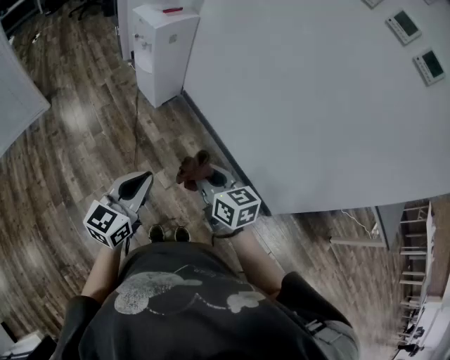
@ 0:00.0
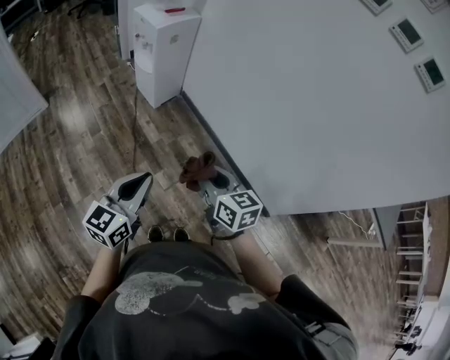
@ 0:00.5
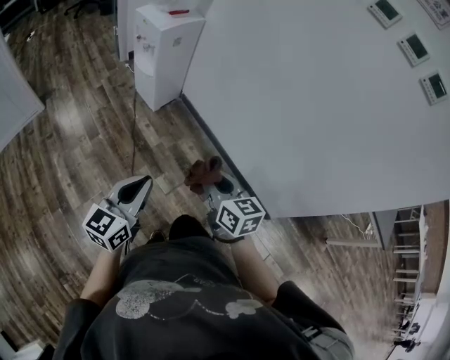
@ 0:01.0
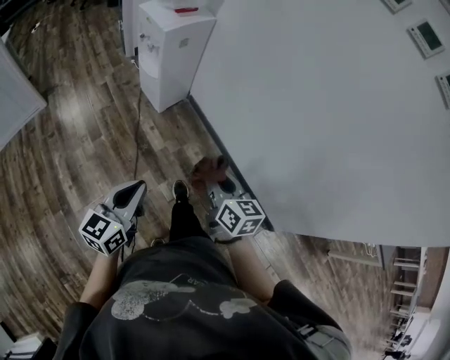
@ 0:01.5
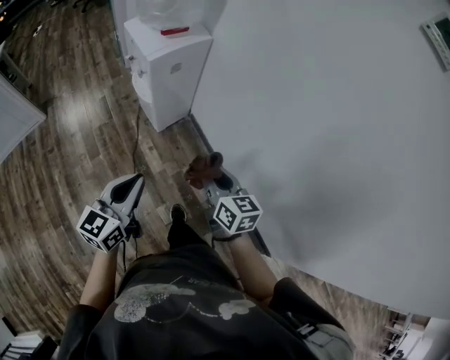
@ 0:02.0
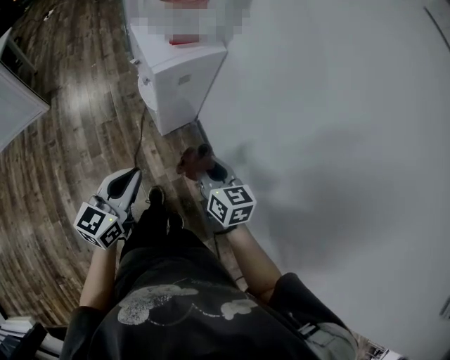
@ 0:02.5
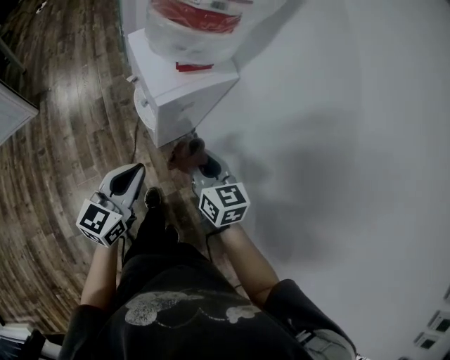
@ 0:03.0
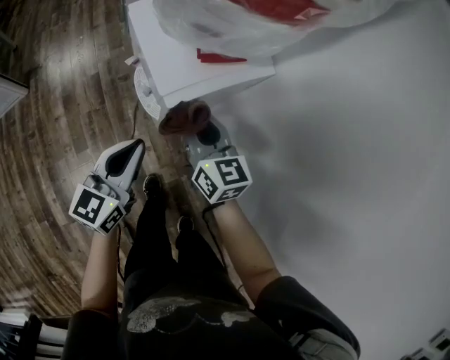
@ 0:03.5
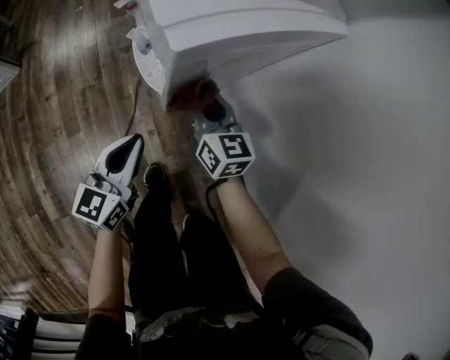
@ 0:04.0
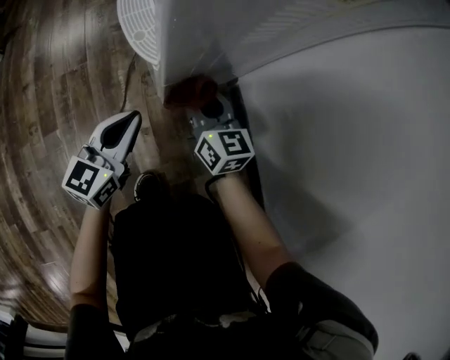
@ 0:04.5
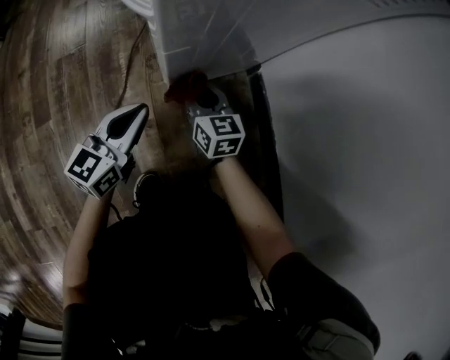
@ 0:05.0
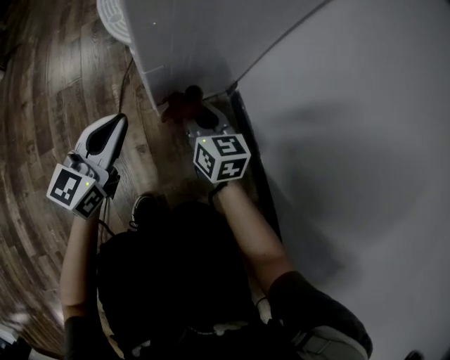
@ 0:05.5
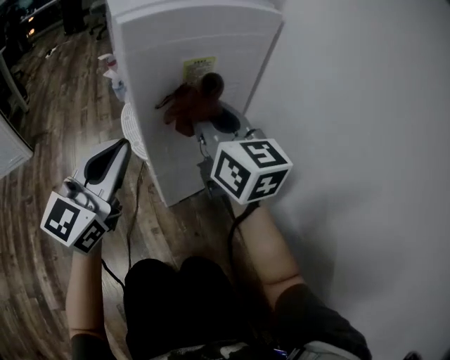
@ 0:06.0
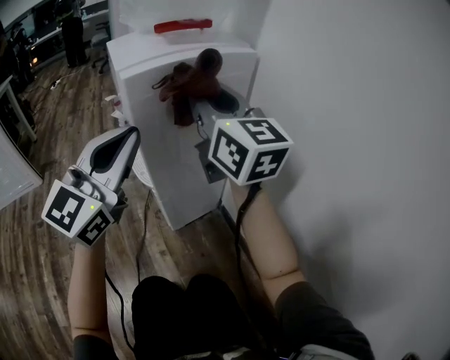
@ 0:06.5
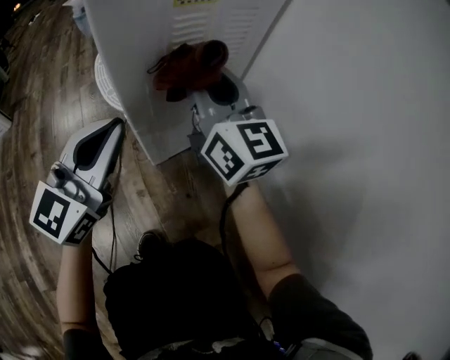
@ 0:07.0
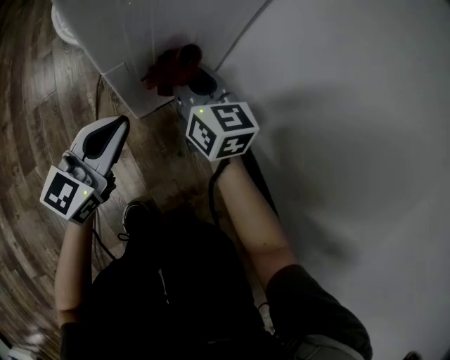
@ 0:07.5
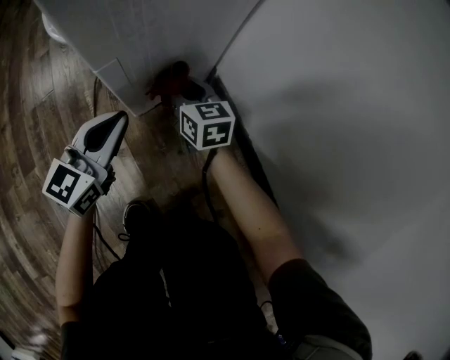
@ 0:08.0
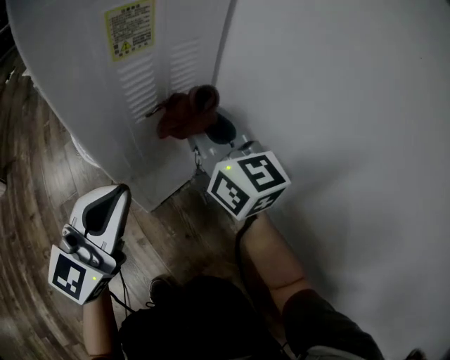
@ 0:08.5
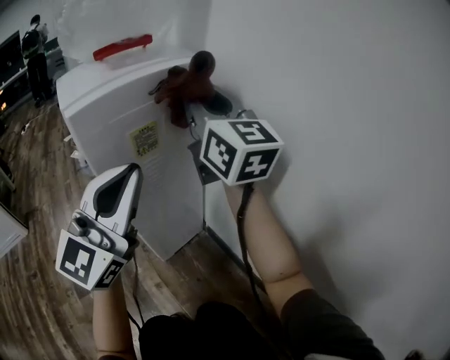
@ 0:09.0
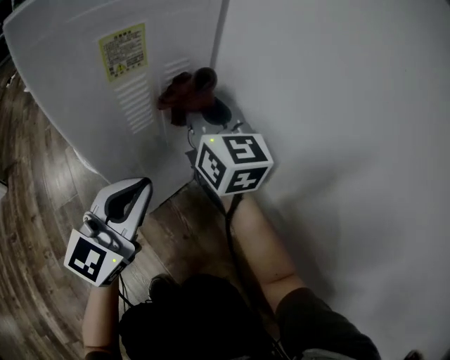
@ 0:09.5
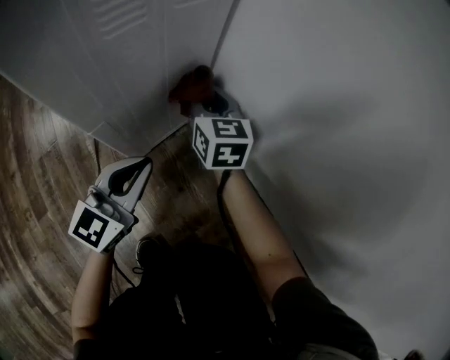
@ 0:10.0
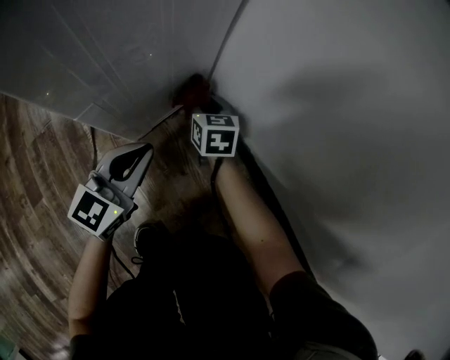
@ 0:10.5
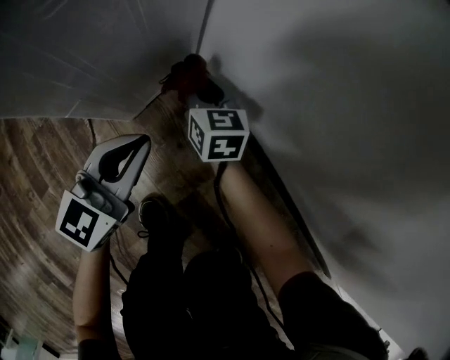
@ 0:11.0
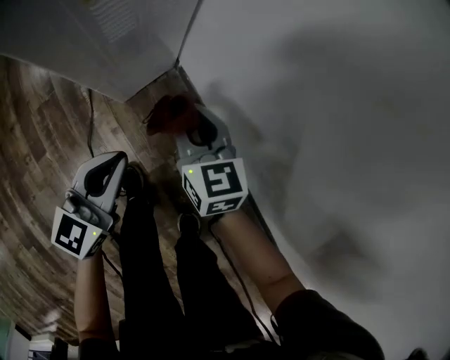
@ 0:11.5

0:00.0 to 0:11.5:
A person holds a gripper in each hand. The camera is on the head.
0:00.0 to 0:02.0: The grippers both shift forward by roughly 35 cm.
0:02.0 to 0:04.0: The two grippers go approximately 40 cm forward and downward.
0:04.0 to 0:06.0: The left gripper goes downward and returns, about 35 cm each way, and turns by roughly 30 degrees. Meanwhile the right gripper moves about 40 cm downward and comes back, and turns by roughly 20 degrees.
0:06.0 to 0:07.5: Both grippers move downward, approximately 30 cm. The left gripper changes its angle by roughly 20 degrees.
0:07.5 to 0:09.5: The right gripper swings up and down, some 60 cm each way, with 2 reversals, and rotates approximately 20 degrees. Meanwhile the left gripper travels upward by approximately 20 cm.
0:09.5 to 0:11.5: The left gripper heads backward, covering approximately 10 cm, travels downward and back again, about 25 cm each way, and swivels approximately 30 degrees, while the right gripper is displaced backward by approximately 20 cm, moves some 40 cm downward and comes back, and angles its fingers downward, by some 30 degrees.

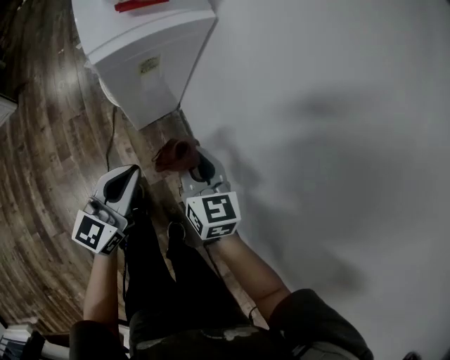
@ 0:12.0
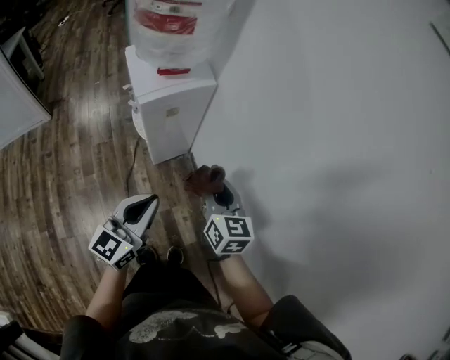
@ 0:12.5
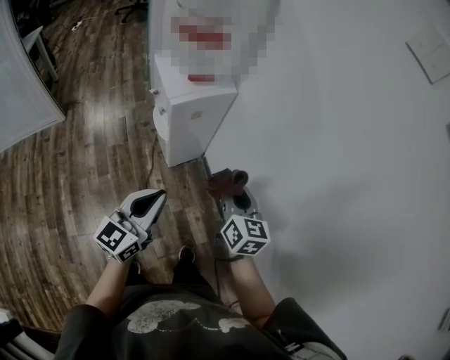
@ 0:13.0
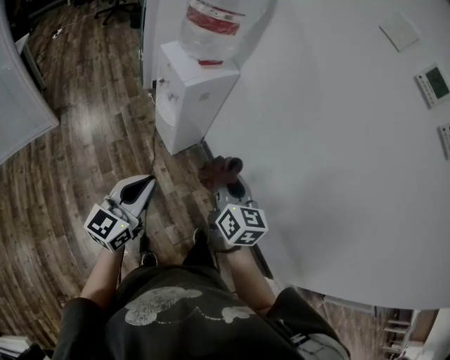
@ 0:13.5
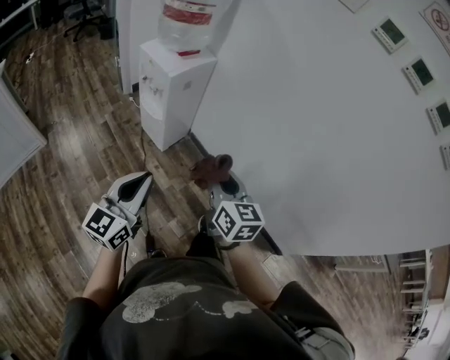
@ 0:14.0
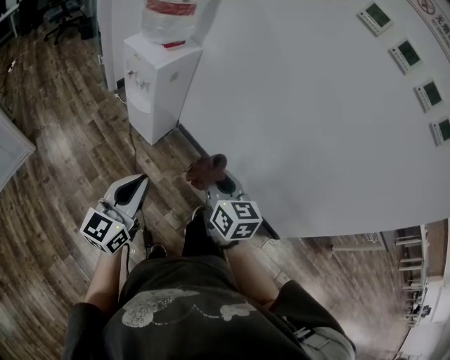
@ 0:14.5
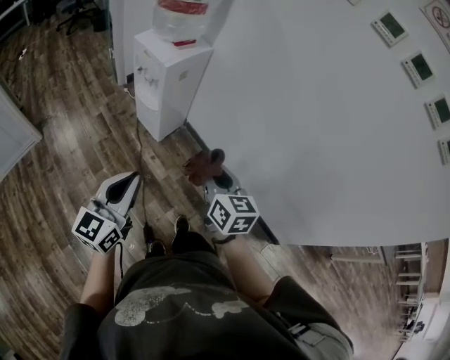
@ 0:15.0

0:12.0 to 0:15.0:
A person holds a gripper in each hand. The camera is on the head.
0:12.0 to 0:13.5: The left gripper shifts roughly 35 cm backward, upward and to the left. The right gripper heads upward and backward, covering about 30 cm.
0:13.5 to 0:15.0: The grippers both shift backward by some 10 cm.

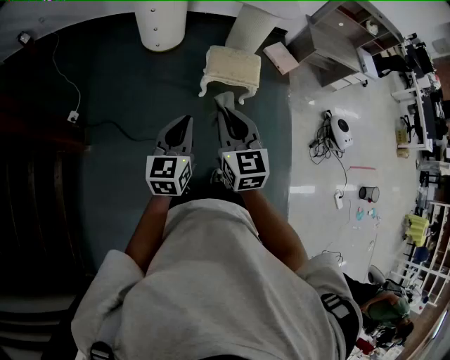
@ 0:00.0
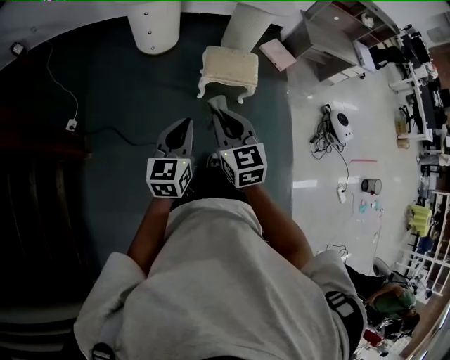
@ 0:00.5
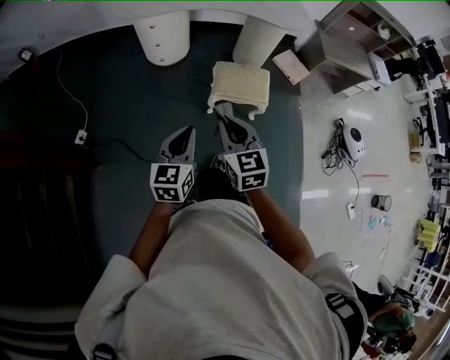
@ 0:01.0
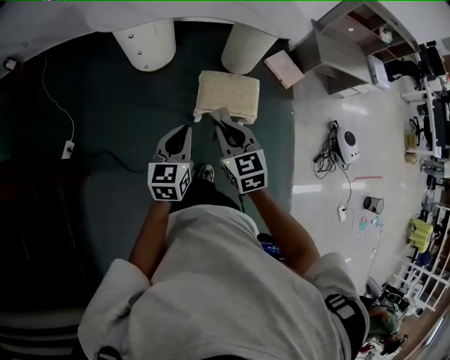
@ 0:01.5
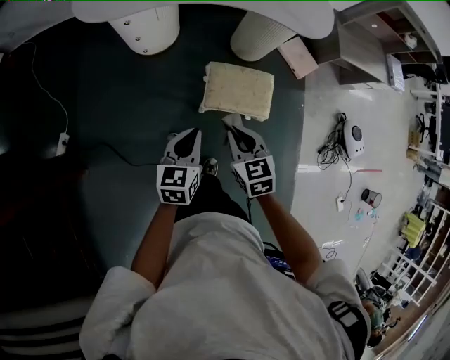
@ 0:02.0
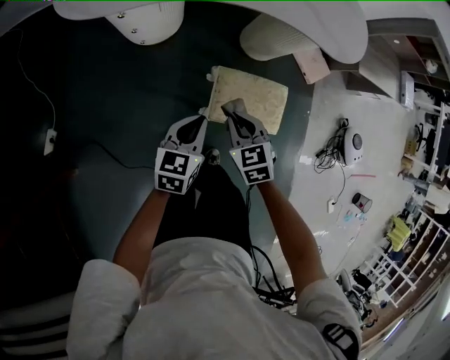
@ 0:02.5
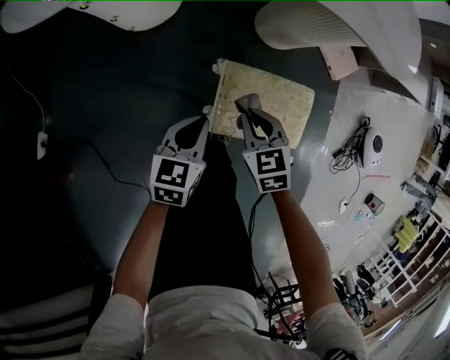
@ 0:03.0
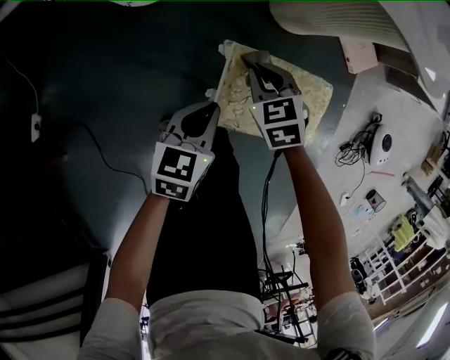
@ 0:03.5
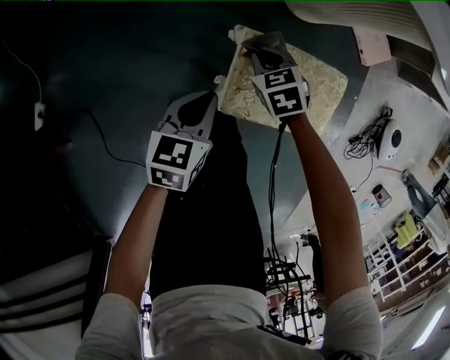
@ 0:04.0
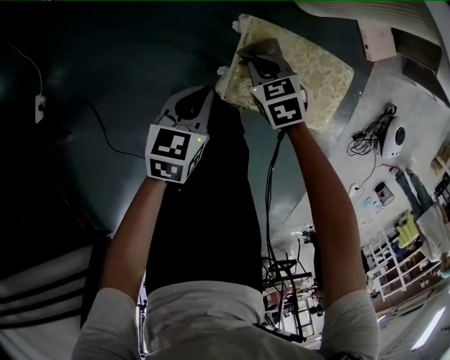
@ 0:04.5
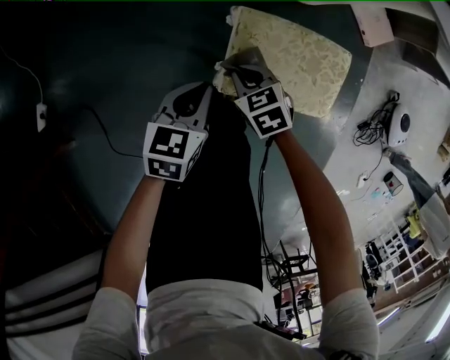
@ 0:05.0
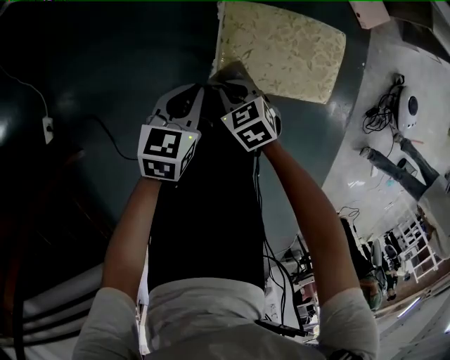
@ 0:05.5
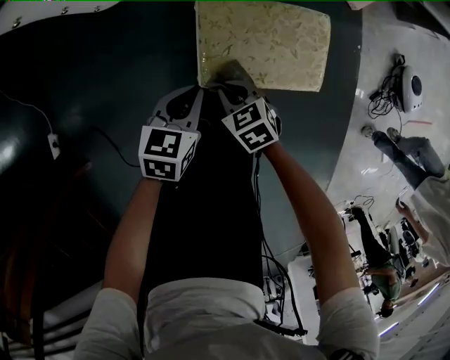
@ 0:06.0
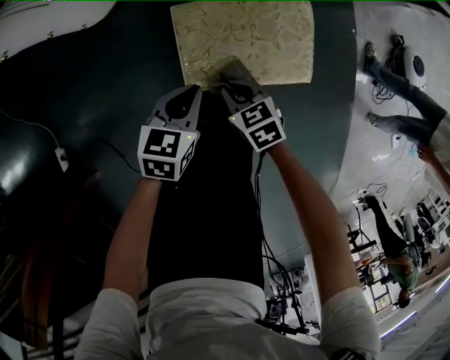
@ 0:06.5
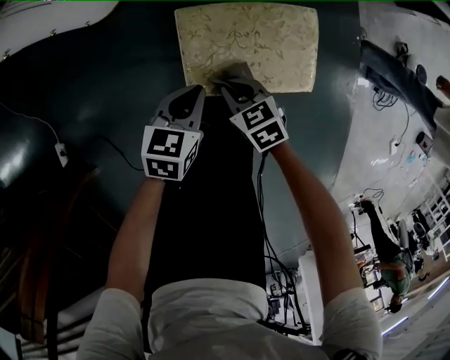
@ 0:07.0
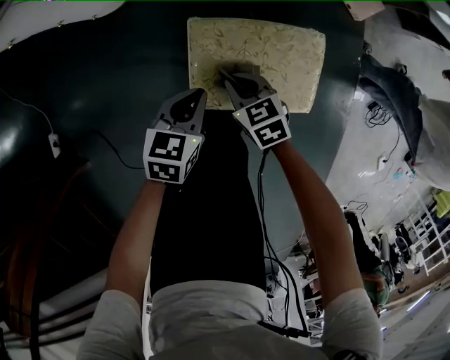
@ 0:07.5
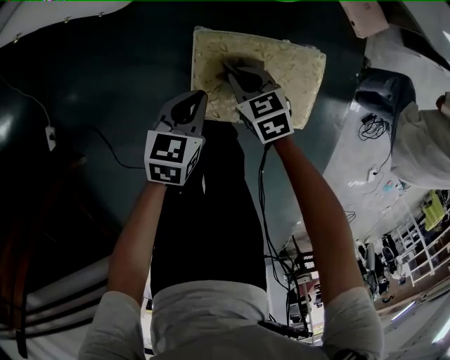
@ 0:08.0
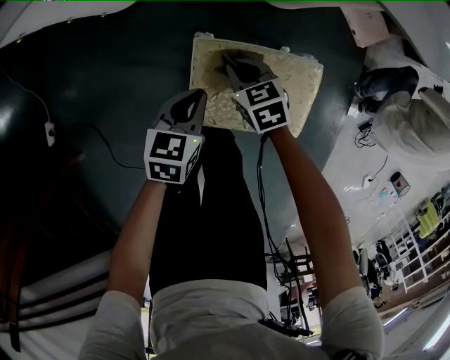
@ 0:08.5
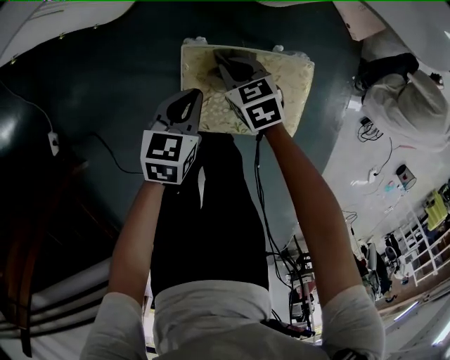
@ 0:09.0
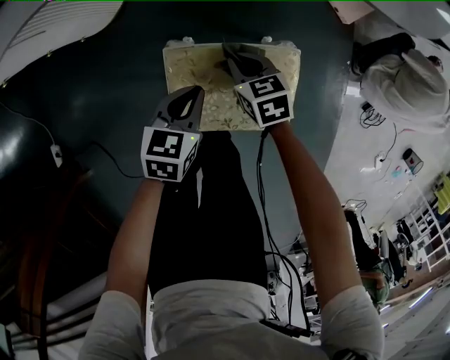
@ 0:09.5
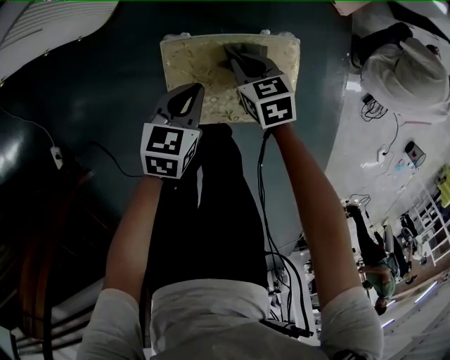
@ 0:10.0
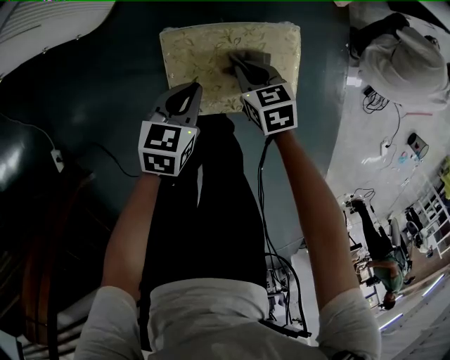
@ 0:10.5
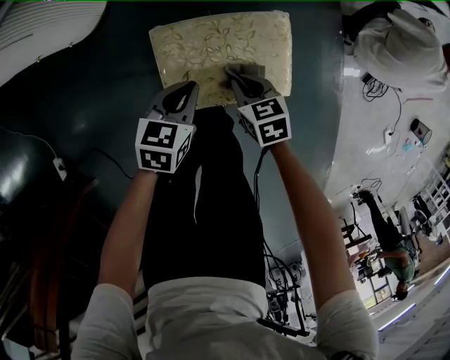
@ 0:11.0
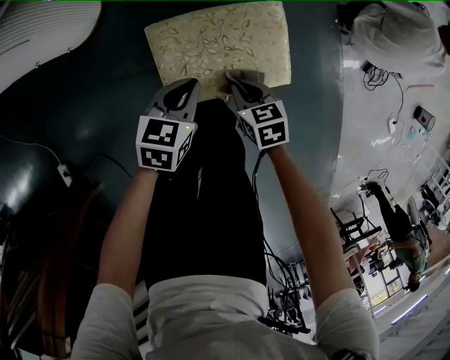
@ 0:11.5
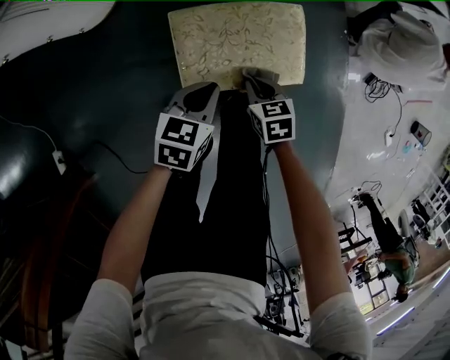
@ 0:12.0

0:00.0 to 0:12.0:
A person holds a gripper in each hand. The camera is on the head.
0:00.0 to 0:02.0: The grippers both shift forward and downward by roughly 40 cm. The right gripper changes its angle by roughly 30 degrees.
0:02.0 to 0:04.0: Both grippers travel together downward and forward, some 50 cm. The right gripper turns by roughly 30 degrees.
0:04.0 to 0:06.0: The right gripper is displaced backward by some 20 cm. Meanwhile the left gripper heads backward, covering some 5 cm.
0:06.0 to 0:08.0: The left gripper shifts some 10 cm forward, while the right gripper moves forward and to the right, some 15 cm.
0:08.0 to 0:10.0: The grippers both shift to the right by approximately 10 cm.
0:10.0 to 0:12.0: The left gripper goes roughly 10 cm backward; the right gripper travels backward by roughly 15 cm.
